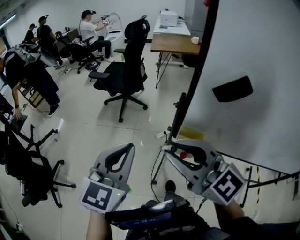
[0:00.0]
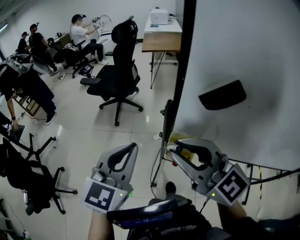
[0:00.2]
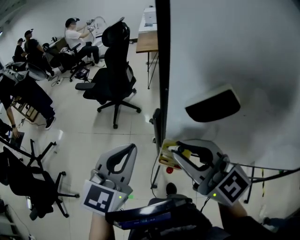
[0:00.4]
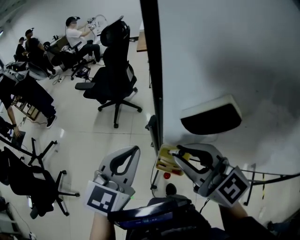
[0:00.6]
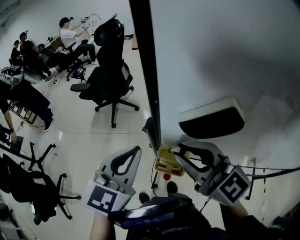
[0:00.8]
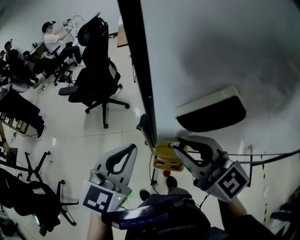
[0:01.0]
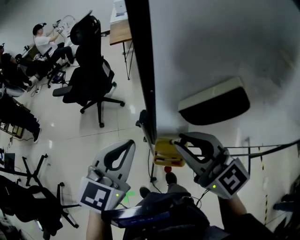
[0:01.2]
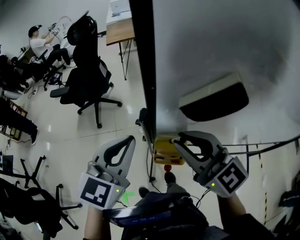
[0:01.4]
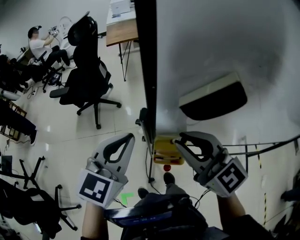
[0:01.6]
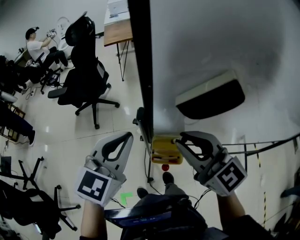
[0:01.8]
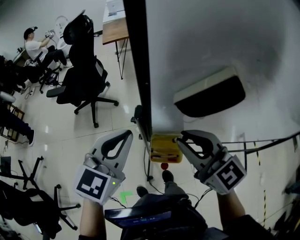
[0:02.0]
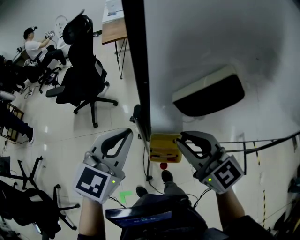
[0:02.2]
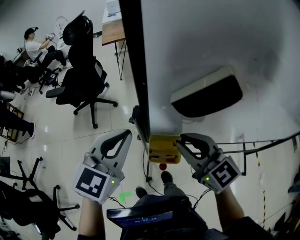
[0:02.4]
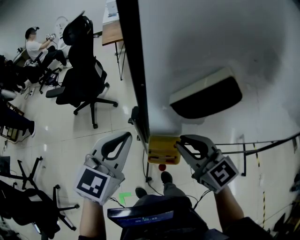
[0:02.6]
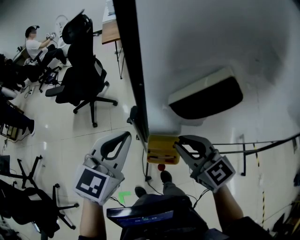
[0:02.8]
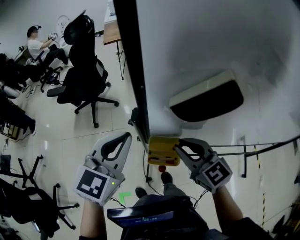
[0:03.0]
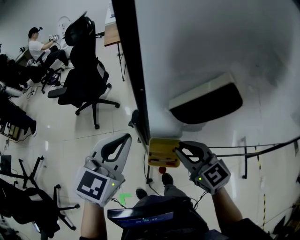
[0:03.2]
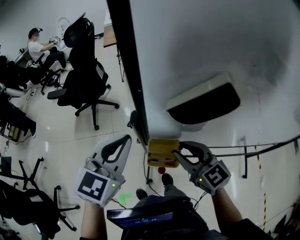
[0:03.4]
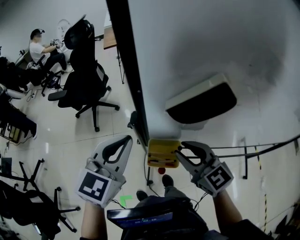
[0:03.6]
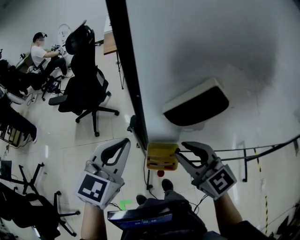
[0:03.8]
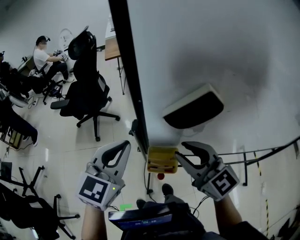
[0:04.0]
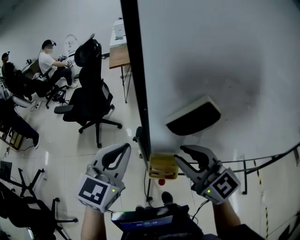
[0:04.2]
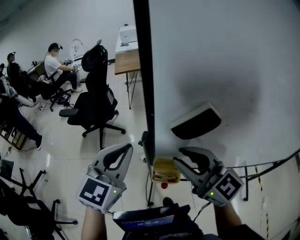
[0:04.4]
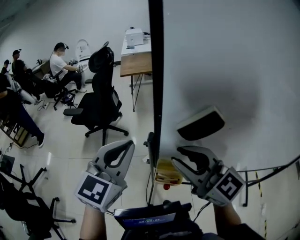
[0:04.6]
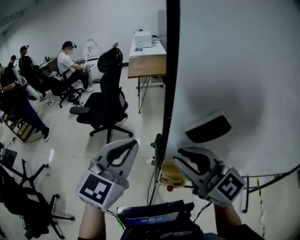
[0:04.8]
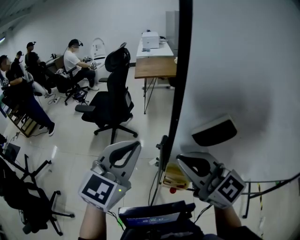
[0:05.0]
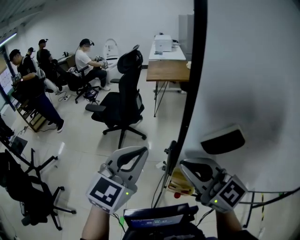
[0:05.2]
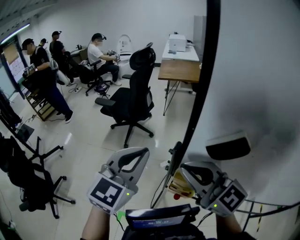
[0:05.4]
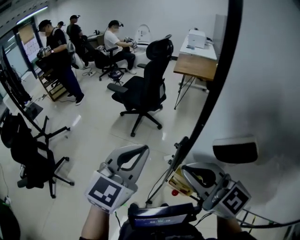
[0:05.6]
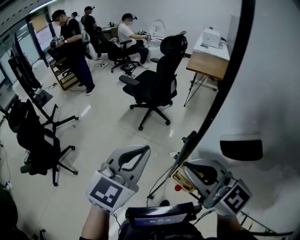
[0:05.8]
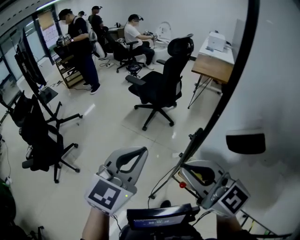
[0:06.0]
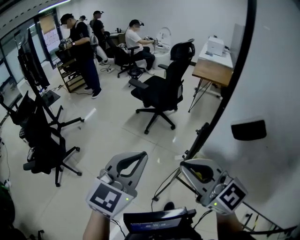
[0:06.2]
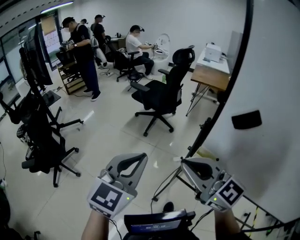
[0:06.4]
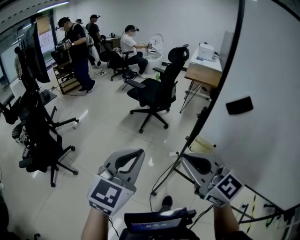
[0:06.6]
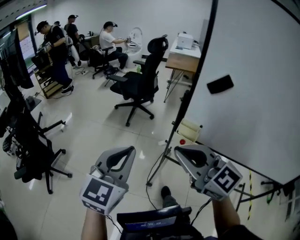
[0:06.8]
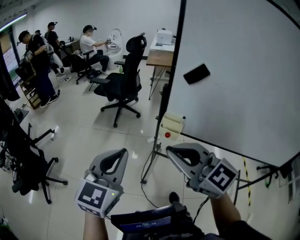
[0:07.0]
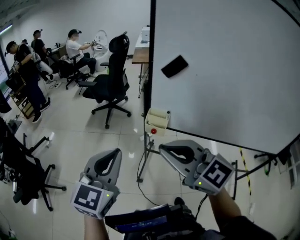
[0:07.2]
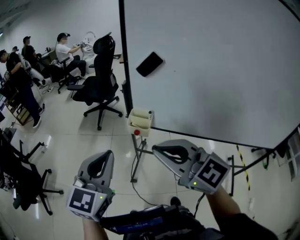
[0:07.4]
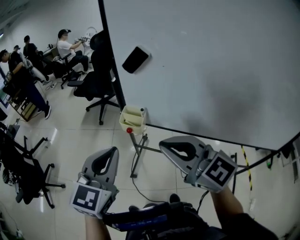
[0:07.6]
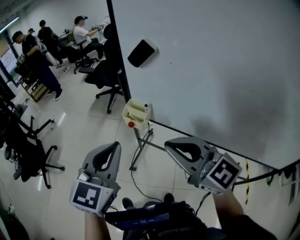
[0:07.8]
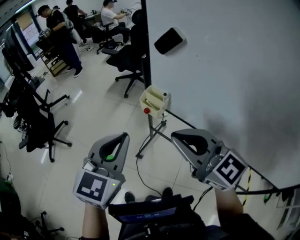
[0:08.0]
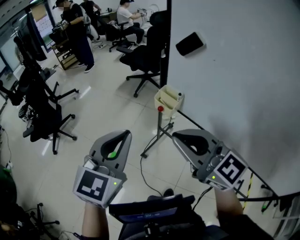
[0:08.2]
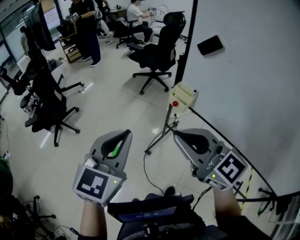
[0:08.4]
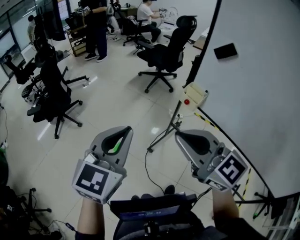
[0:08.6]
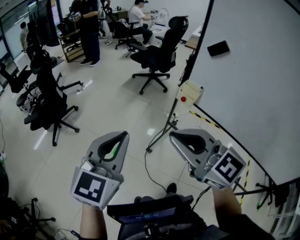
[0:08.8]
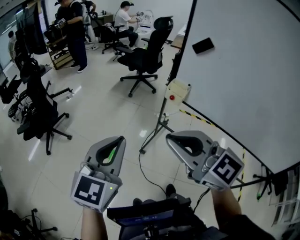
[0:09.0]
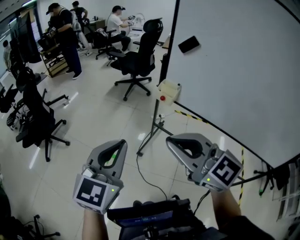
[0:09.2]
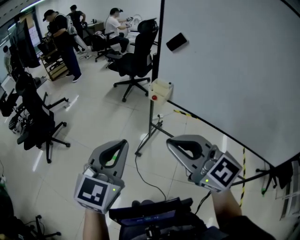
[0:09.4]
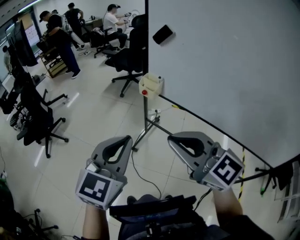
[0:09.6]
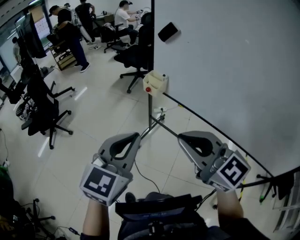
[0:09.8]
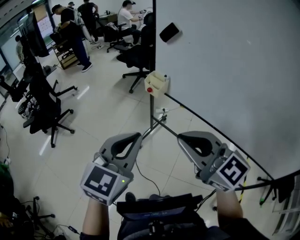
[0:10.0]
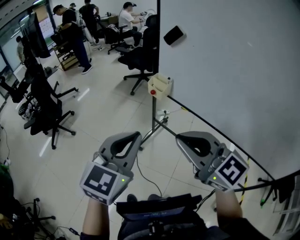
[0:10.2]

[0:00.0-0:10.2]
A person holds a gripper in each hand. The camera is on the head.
0:00.0 to 0:01.4: The left gripper heads to the right and forward, covering about 15 cm, while the right gripper travels to the right, forward and downward by some 20 cm, and swivels about 20 degrees.
0:01.4 to 0:03.0: The right gripper shifts approximately 10 cm downward.
0:03.0 to 0:04.4: The right gripper shifts roughly 15 cm upward, and turns by roughly 20 degrees. Meanwhile the left gripper shifts roughly 5 cm upward.
0:04.4 to 0:05.8: The left gripper shifts by roughly 10 cm, and turns by some 30 degrees. The right gripper changes place by roughly 10 cm, turns by approximately 30 degrees, and closes its fingers.
0:05.8 to 0:07.2: The right gripper shifts roughly 25 cm backward, while the left gripper travels backward and to the left by some 25 cm.
0:07.2 to 0:08.8: The right gripper goes about 15 cm backward, reaches roughly 15 cm to the right, then returns, and turns by approximately 20 degrees. The left gripper is displaced backward and to the left by approximately 20 cm, and changes its angle by about 20 degrees.
0:08.8 to 0:10.2: The right gripper goes roughly 20 cm to the right and backward; the left gripper is displaced to the right by some 20 cm.

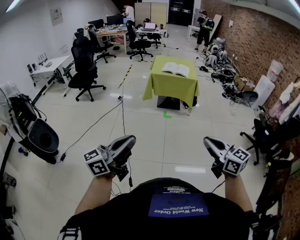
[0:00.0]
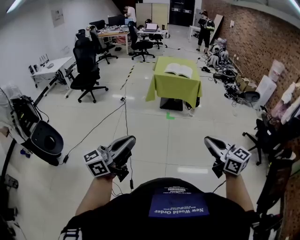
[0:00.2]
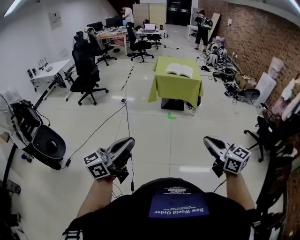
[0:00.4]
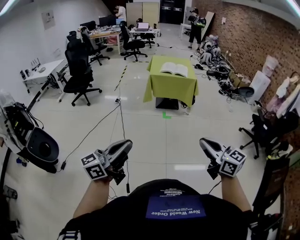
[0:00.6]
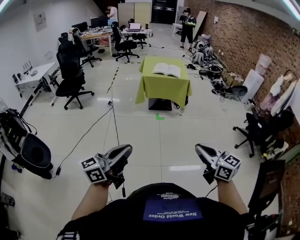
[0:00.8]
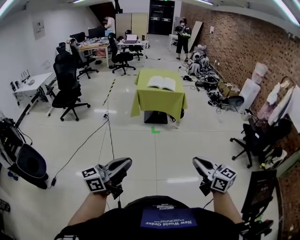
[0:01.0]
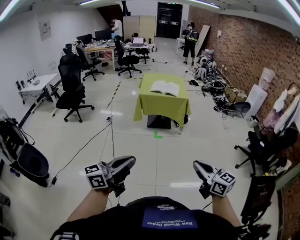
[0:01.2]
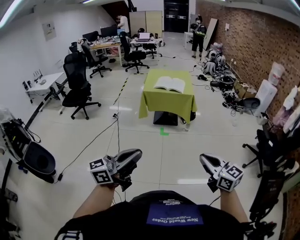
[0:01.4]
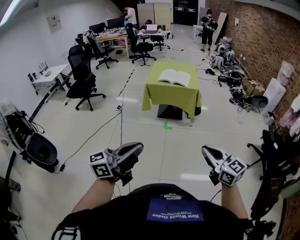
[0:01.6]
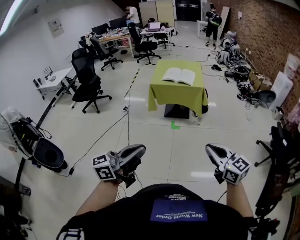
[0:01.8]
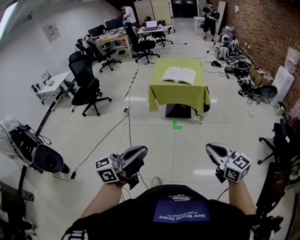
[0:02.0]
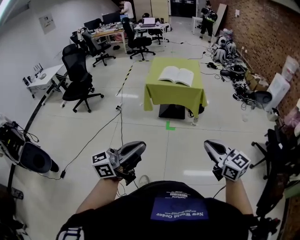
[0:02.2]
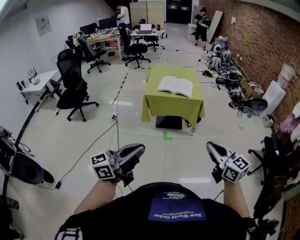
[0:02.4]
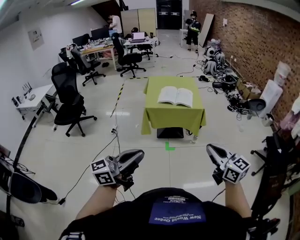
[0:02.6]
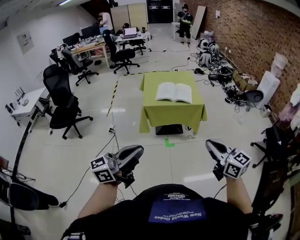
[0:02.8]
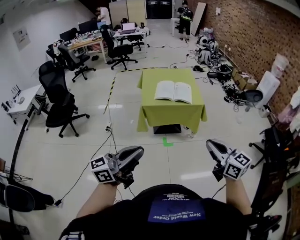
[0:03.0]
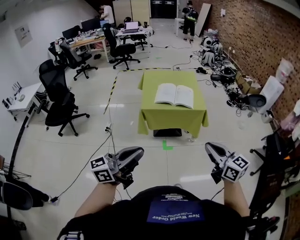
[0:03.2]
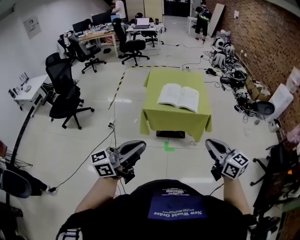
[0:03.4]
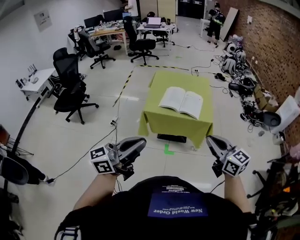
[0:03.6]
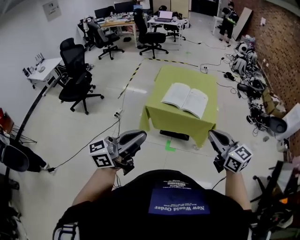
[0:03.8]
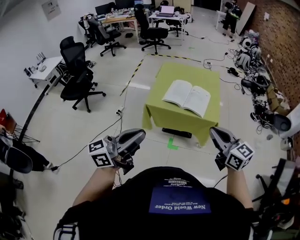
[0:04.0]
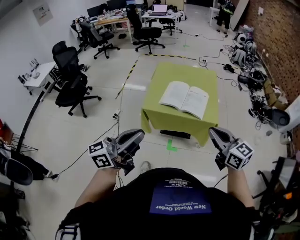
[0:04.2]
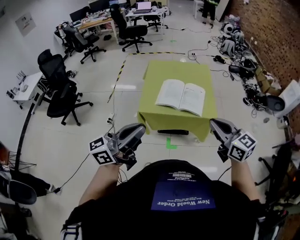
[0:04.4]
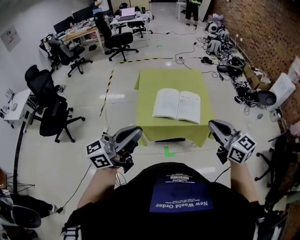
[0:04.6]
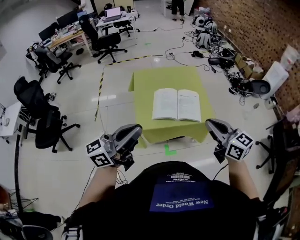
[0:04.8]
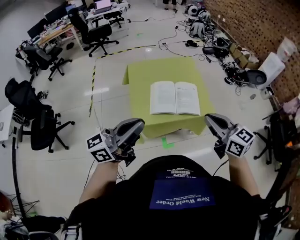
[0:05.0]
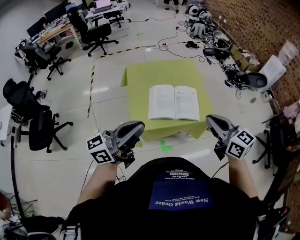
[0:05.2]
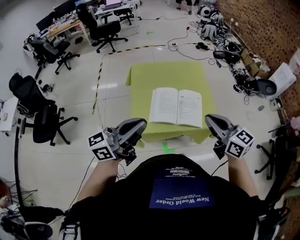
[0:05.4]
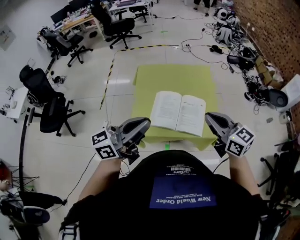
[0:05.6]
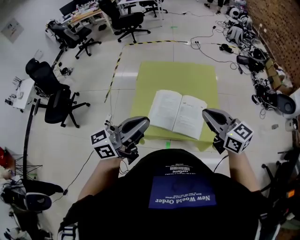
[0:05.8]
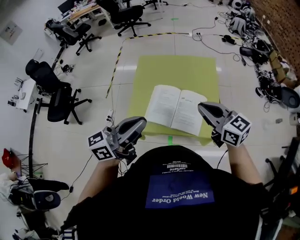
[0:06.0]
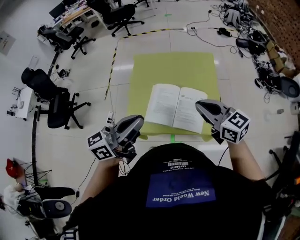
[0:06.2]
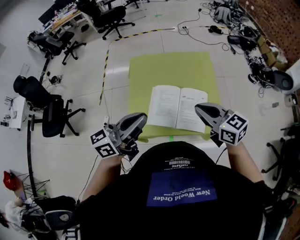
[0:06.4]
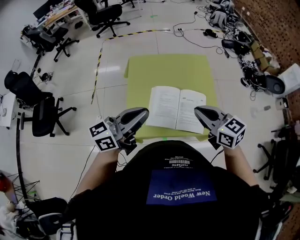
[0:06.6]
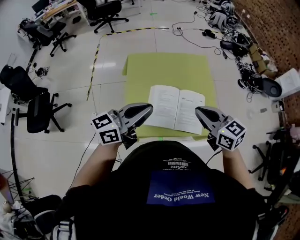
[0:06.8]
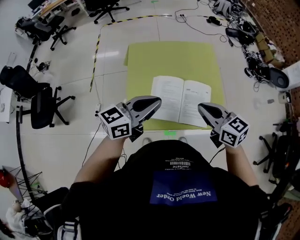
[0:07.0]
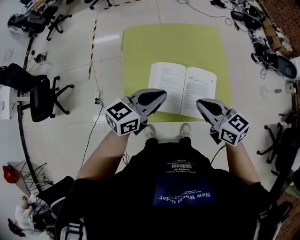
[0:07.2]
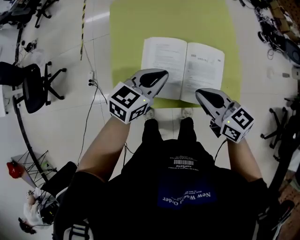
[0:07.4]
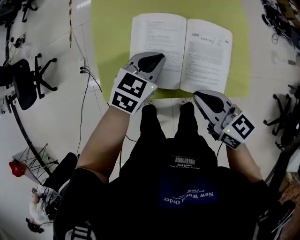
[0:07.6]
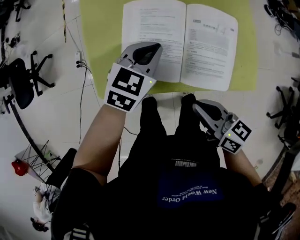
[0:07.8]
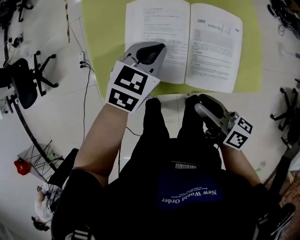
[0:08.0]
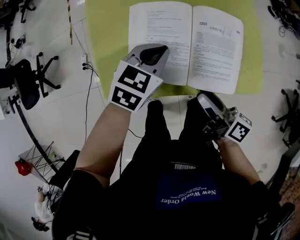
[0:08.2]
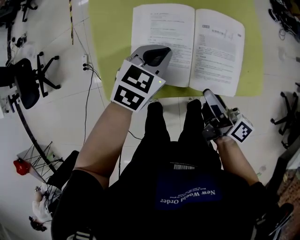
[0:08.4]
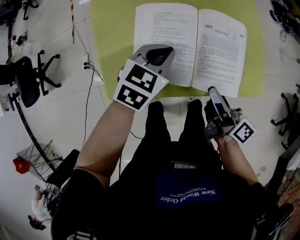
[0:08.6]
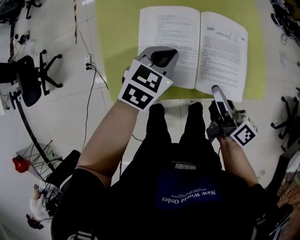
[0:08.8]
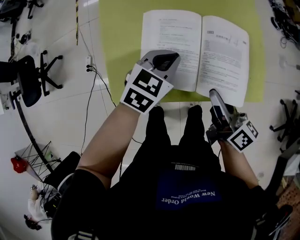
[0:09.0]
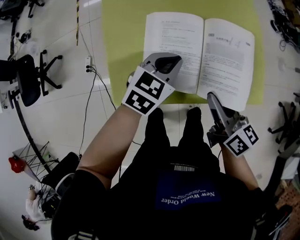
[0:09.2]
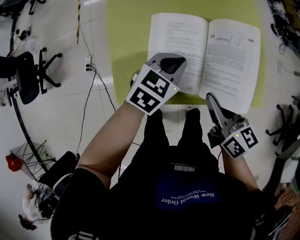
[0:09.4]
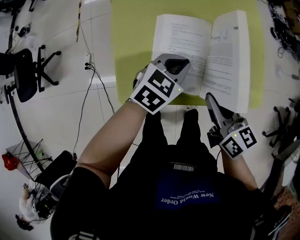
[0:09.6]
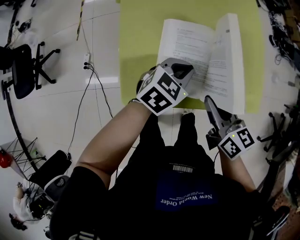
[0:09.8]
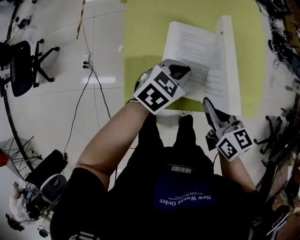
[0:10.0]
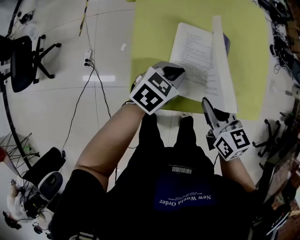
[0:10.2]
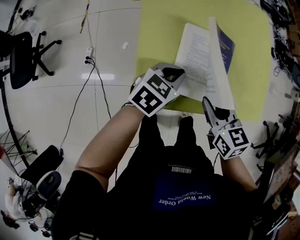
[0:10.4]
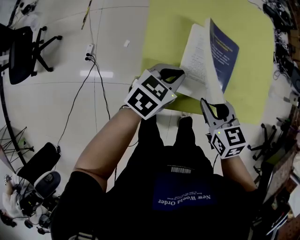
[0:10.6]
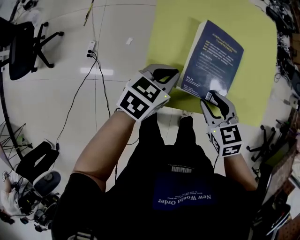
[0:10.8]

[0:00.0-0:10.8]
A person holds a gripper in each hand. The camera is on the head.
0:00.0 to 0:01.6: Both grippers move forward and to the right, roughly 25 cm.
0:01.6 to 0:03.0: The grippers both shift forward and to the left by roughly 40 cm.
0:03.0 to 0:04.6: The two grippers go approximately 40 cm forward.
0:04.6 to 0:06.2: The two grippers go roughly 25 cm forward.
0:06.2 to 0:07.8: The left gripper is displaced downward and forward by about 40 cm, and points its fingers some 50 degrees further downward; the right gripper shifts some 25 cm downward, and swivels approximately 40 degrees.
0:07.8 to 0:09.2: The right gripper moves forward, roughly 5 cm, and opens its fingers.
0:09.2 to 0:10.8: The grippers both shift to the left by about 15 cm. The right gripper tips its fingers downward by roughly 30 degrees.

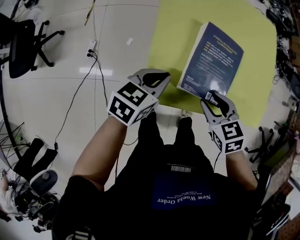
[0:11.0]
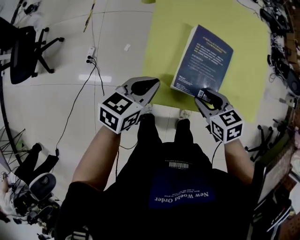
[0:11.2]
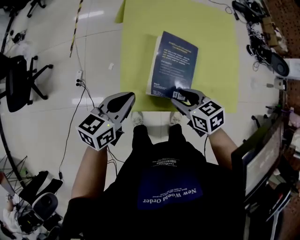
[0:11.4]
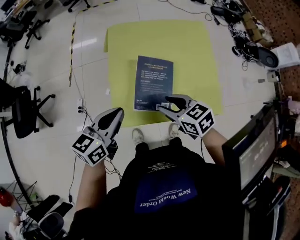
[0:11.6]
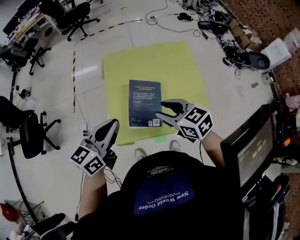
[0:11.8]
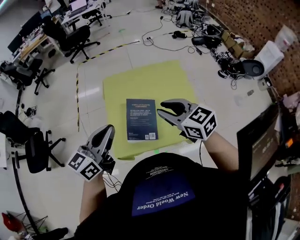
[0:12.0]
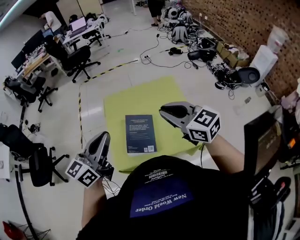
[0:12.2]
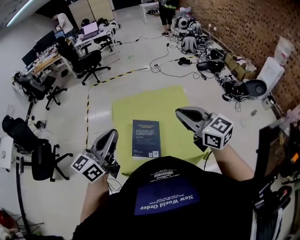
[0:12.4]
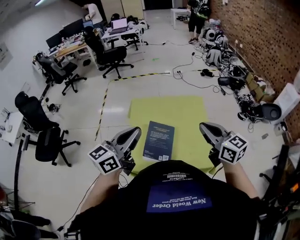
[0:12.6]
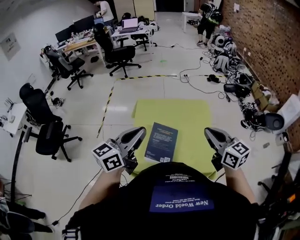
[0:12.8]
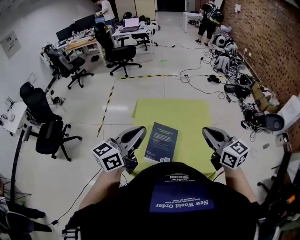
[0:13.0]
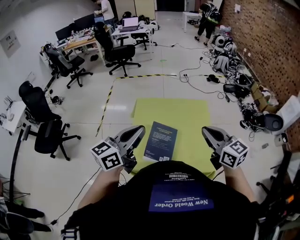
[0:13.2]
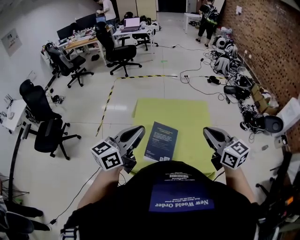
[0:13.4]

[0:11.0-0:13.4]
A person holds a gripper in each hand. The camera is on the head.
0:11.0 to 0:12.2: Both grippers travel together upward, about 35 cm. The left gripper tips its fingers upward by roughly 40 degrees. Meanwhile the right gripper tilts its fingers approximately 40 degrees upward, and closes its fingers.
0:12.2 to 0:13.4: The right gripper moves about 5 cm.
